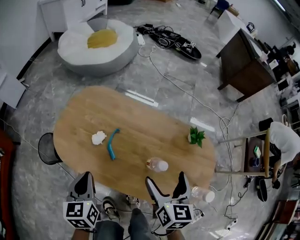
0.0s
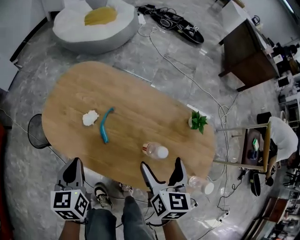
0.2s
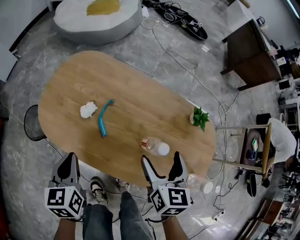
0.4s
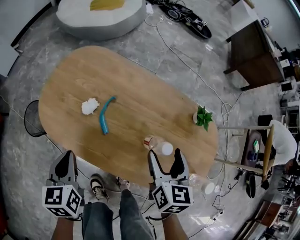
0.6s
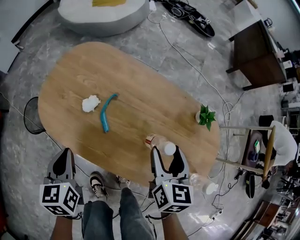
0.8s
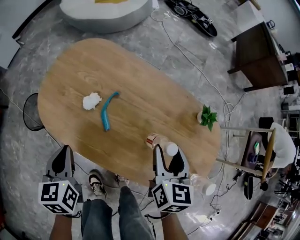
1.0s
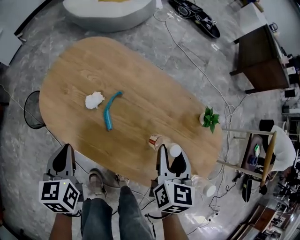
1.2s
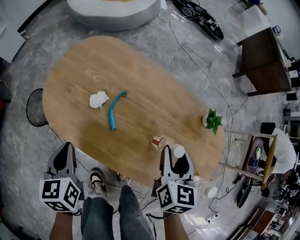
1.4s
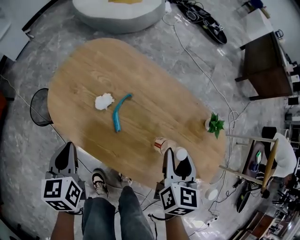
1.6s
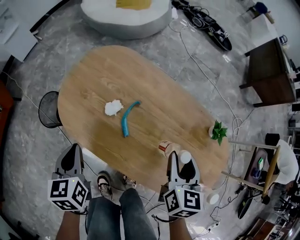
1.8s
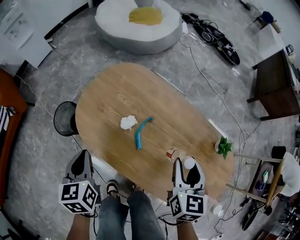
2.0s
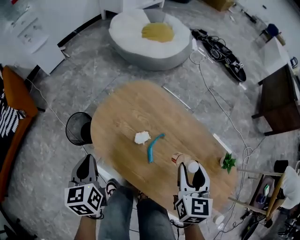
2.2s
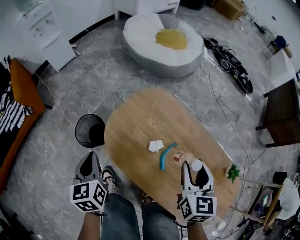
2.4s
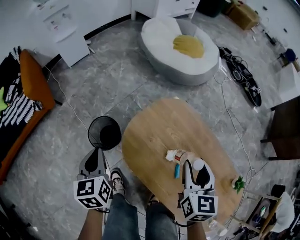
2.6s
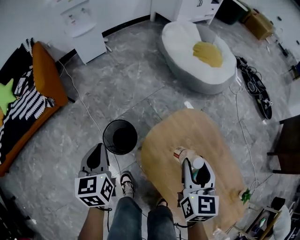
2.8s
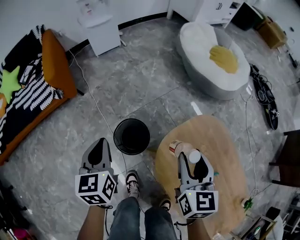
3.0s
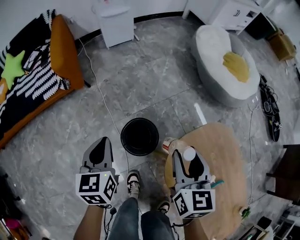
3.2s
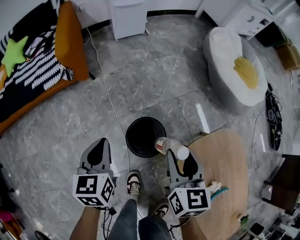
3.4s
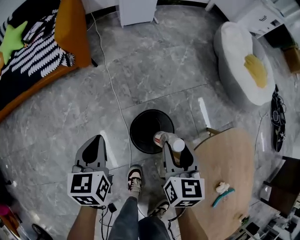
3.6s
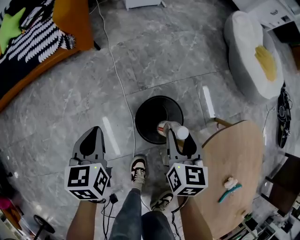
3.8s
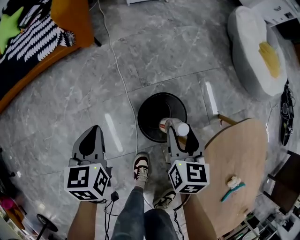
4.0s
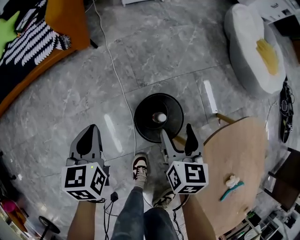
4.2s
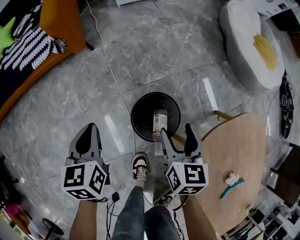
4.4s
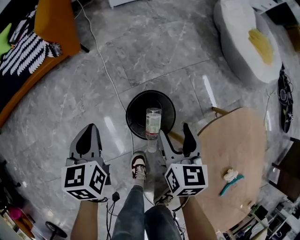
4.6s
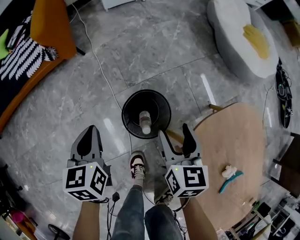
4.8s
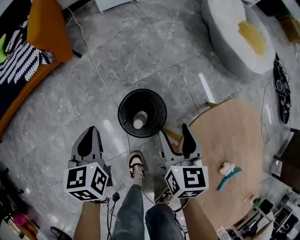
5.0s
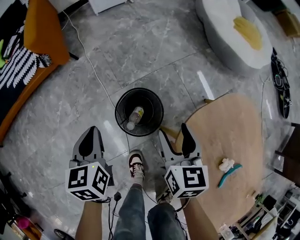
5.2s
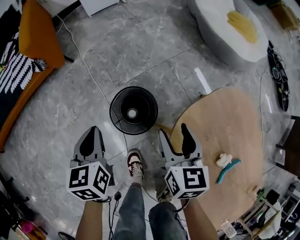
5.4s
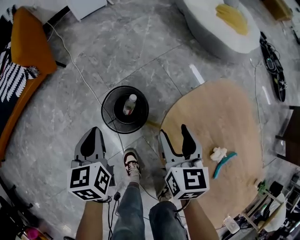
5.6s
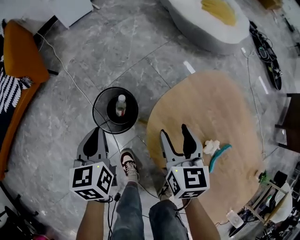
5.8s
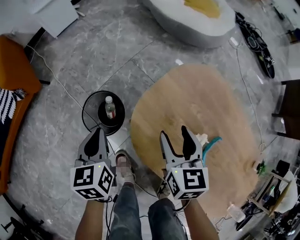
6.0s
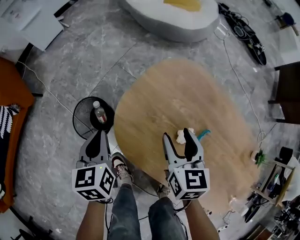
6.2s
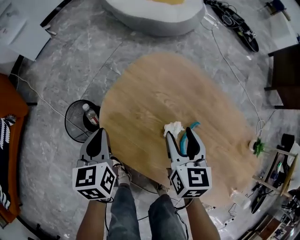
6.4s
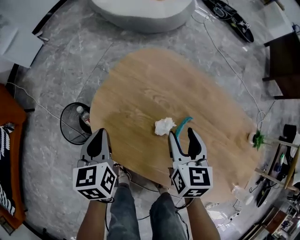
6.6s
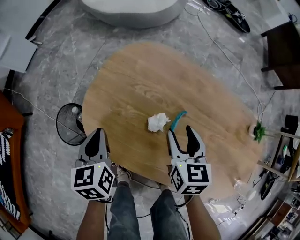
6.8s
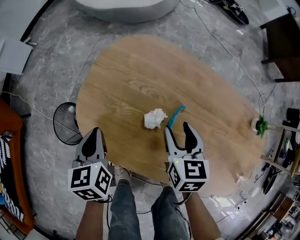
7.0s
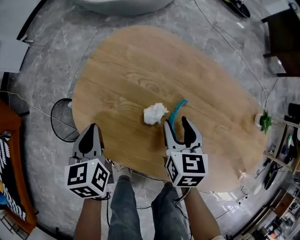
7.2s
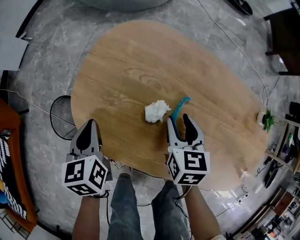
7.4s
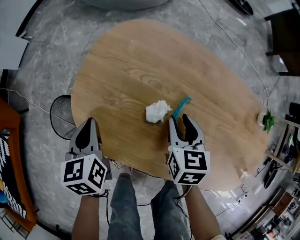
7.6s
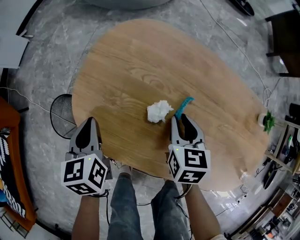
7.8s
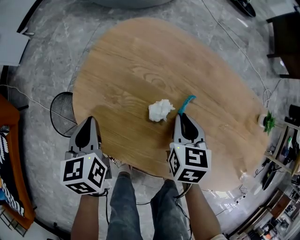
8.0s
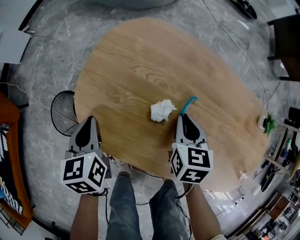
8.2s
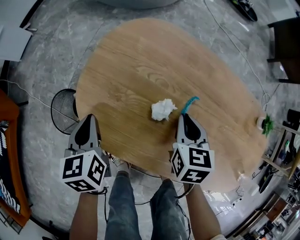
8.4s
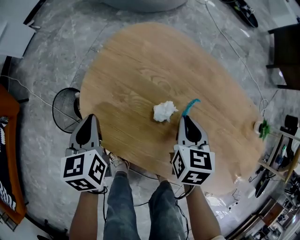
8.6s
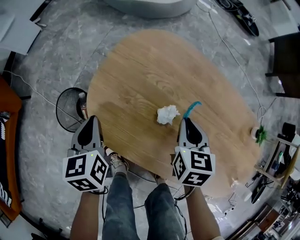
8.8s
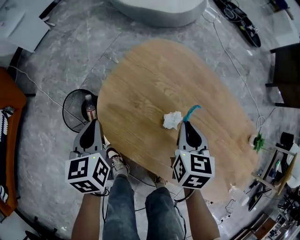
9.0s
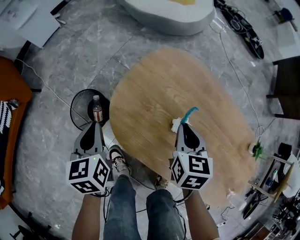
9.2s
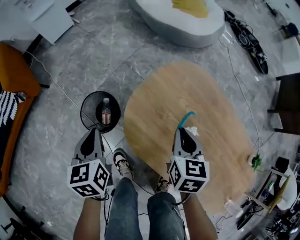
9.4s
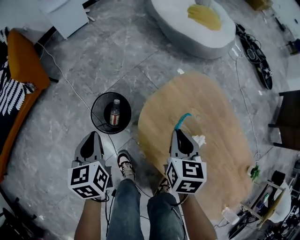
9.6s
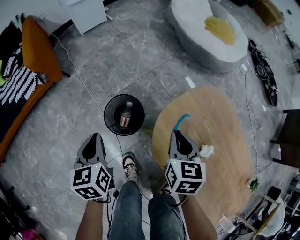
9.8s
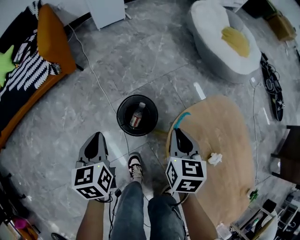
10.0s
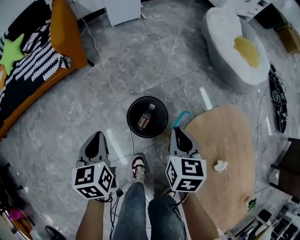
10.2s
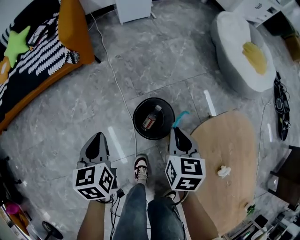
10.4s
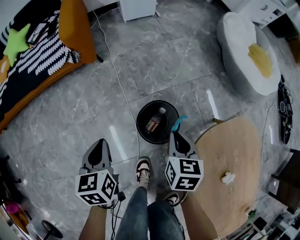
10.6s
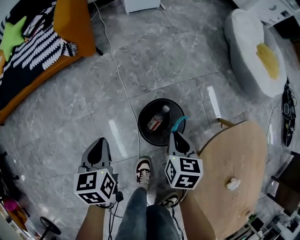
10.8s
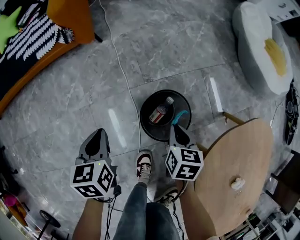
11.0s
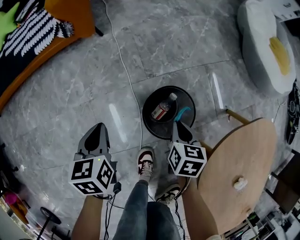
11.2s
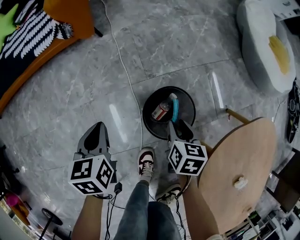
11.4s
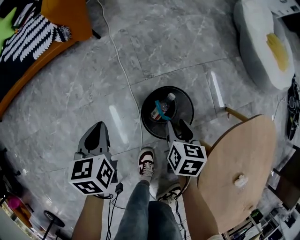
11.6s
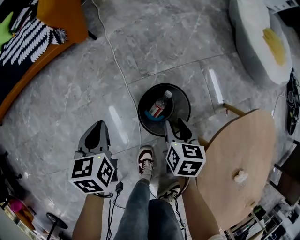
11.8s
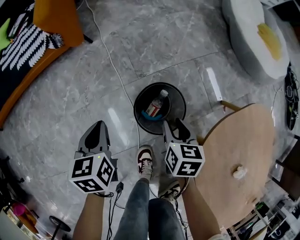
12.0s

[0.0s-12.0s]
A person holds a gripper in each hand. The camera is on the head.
0.0s to 1.6s: The left gripper moves downward and to the left, about 10 cm. Meanwhile the right gripper shifts some 5 cm downward, and closes up.
1.6s to 3.0s: The left gripper moves roughly 40 cm, and rotates roughly 30 degrees, while the right gripper moves some 50 cm, and changes its angle by roughly 40 degrees.
3.0s to 4.4s: Both grippers move downward and to the left, some 25 cm.
4.4s to 6.0s: The right gripper moves to the right and backward, approximately 25 cm, and changes its angle by some 20 degrees. The left gripper moves to the right, approximately 25 cm, and swivels roughly 20 degrees.
6.0s to 7.6s: The grippers both shift to the right by approximately 20 cm. The right gripper swivels approximately 30 degrees.
7.6s to 9.0s: The left gripper is displaced to the left by some 5 cm, while the right gripper goes some 5 cm upward.
9.0s to 10.4s: The right gripper changes place by roughly 40 cm, and swivels about 40 degrees. The left gripper ends up some 35 cm from where it was, and rotates some 40 degrees.
10.4s to 12.0s: Both grippers move downward, approximately 15 cm.

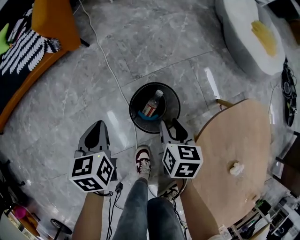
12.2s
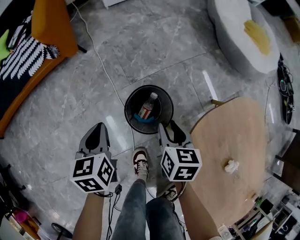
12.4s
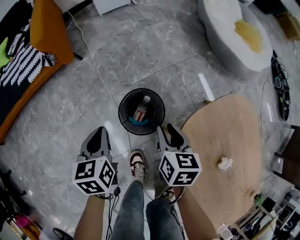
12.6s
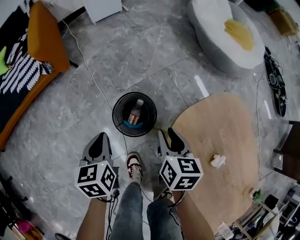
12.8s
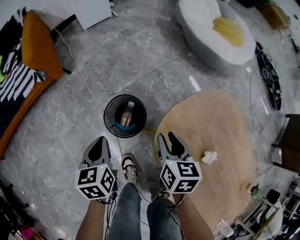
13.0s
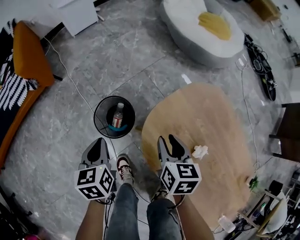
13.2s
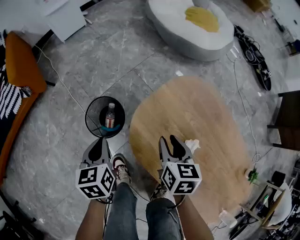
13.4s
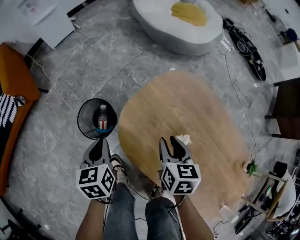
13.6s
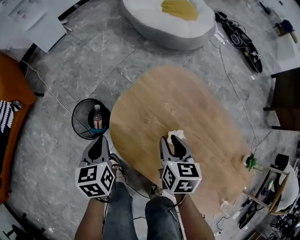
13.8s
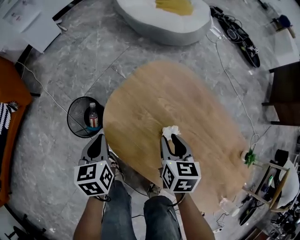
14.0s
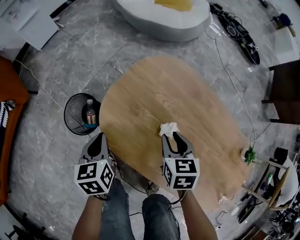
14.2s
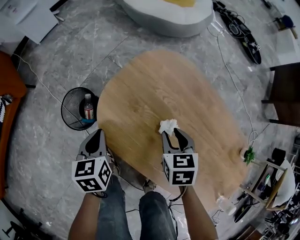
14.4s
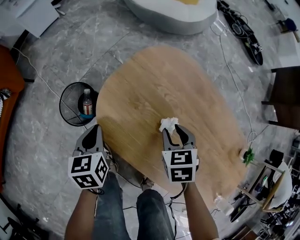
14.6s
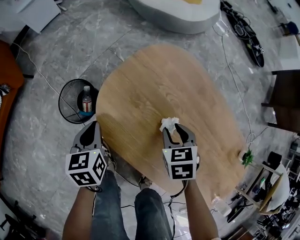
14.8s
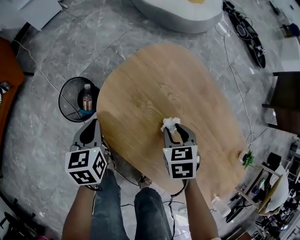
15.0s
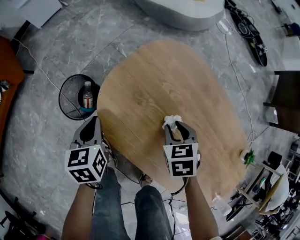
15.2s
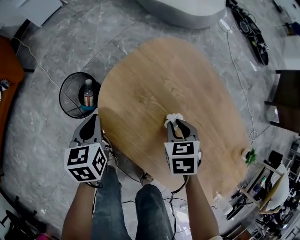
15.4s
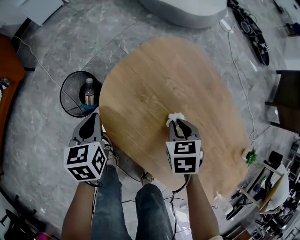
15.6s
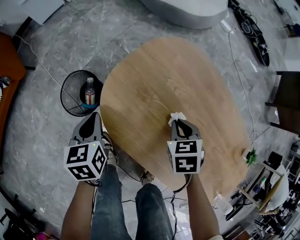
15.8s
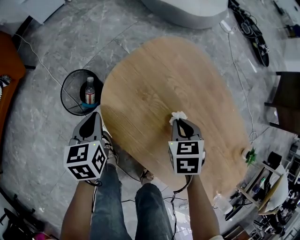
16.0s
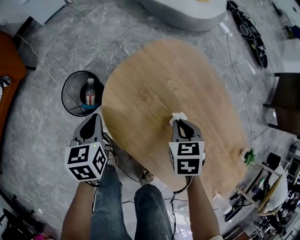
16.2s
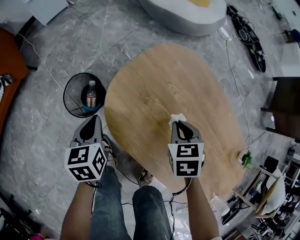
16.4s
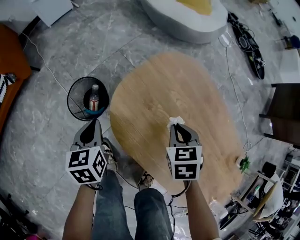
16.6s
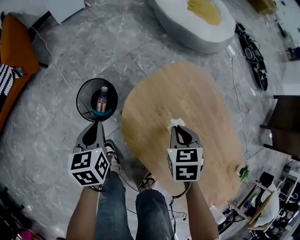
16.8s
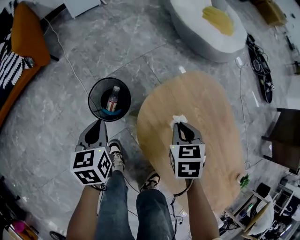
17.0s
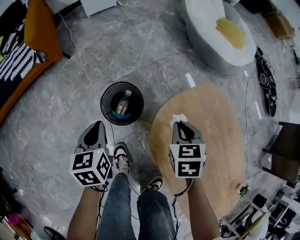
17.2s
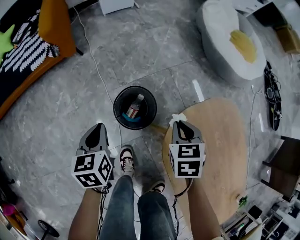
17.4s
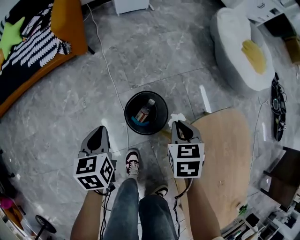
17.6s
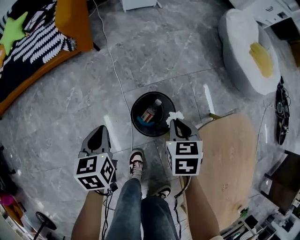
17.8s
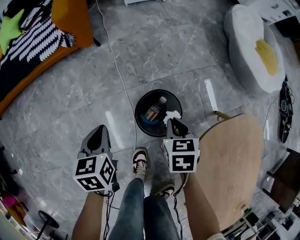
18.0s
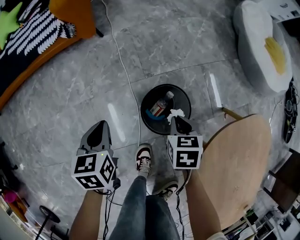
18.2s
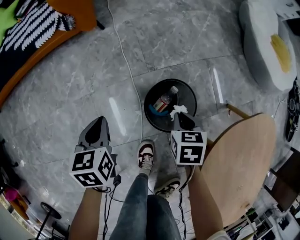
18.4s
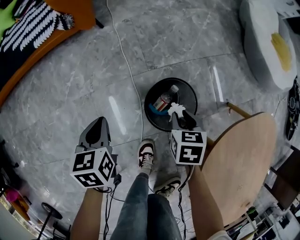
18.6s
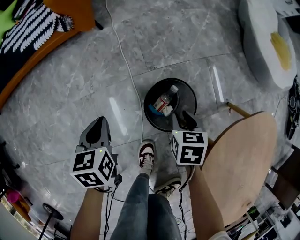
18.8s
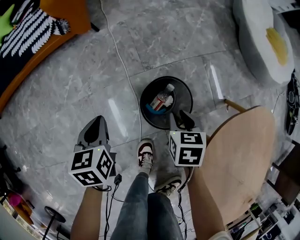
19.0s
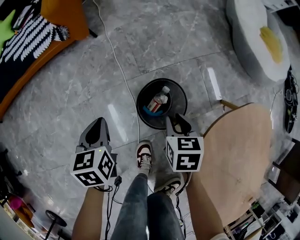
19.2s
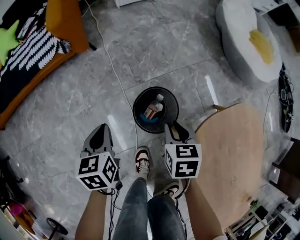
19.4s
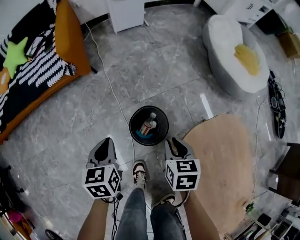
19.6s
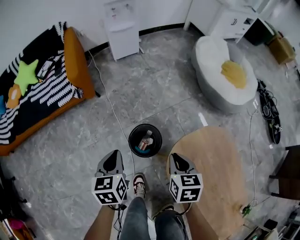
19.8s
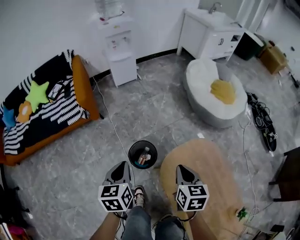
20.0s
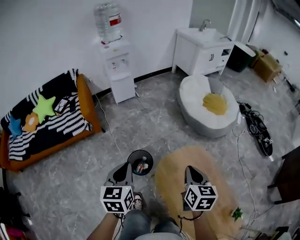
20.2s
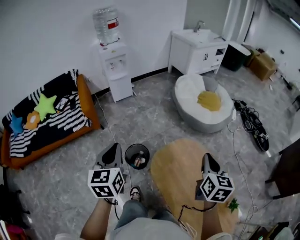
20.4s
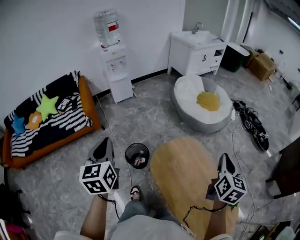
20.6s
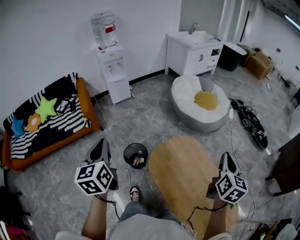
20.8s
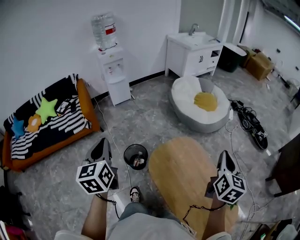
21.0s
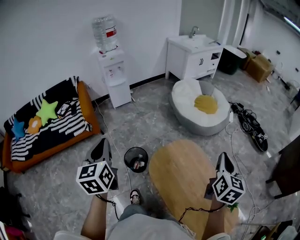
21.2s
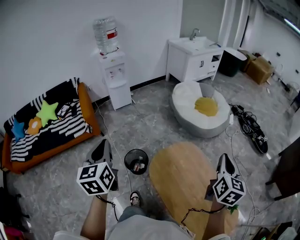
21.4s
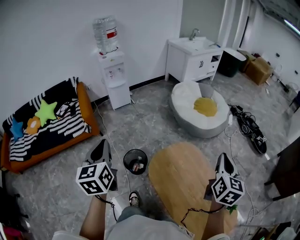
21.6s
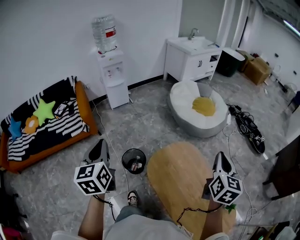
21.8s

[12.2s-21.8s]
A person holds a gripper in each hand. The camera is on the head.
12.2s to 13.8s: The left gripper shifts by about 30 cm, and turns by approximately 20 degrees. Meanwhile the right gripper shifts by about 35 cm, and rotates some 30 degrees.
13.8s to 15.4s: The left gripper shifts by roughly 5 cm. Meanwhile the right gripper is displaced downward by about 10 cm, and rotates approximately 30 degrees.
15.4s to 17.0s: The right gripper travels to the left, upward and forward by some 15 cm. The left gripper is displaced to the left by roughly 10 cm.
17.0s to 18.6s: The left gripper travels to the left and downward by roughly 25 cm. The right gripper travels to the left, downward and forward by some 35 cm.
18.6s to 20.2s: The left gripper is displaced upward and to the right by about 50 cm, and changes its angle by roughly 30 degrees. The right gripper heads upward, covering approximately 50 cm, and tilts its fingers approximately 30 degrees upward.
20.2s to 21.8s: The right gripper goes roughly 25 cm to the right, upward and backward, and rotates some 30 degrees, while the left gripper shifts about 15 cm upward.

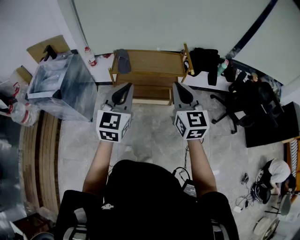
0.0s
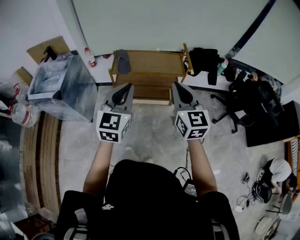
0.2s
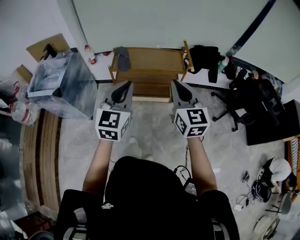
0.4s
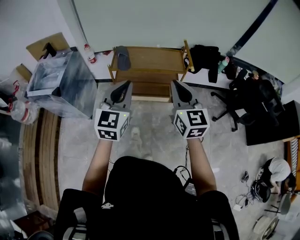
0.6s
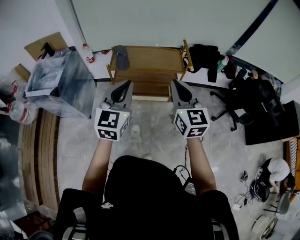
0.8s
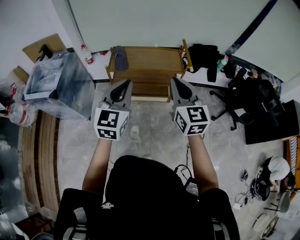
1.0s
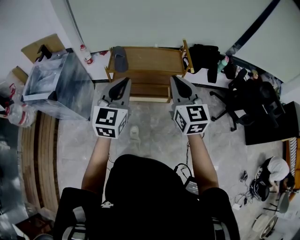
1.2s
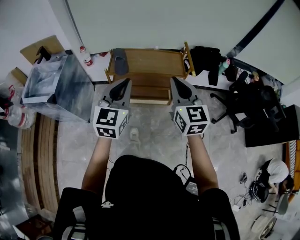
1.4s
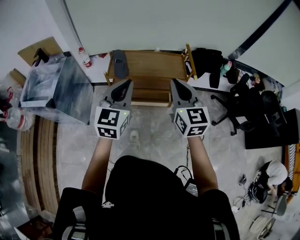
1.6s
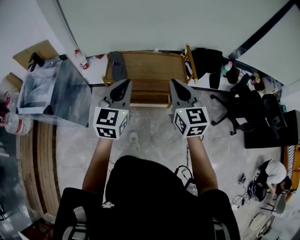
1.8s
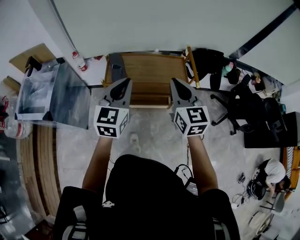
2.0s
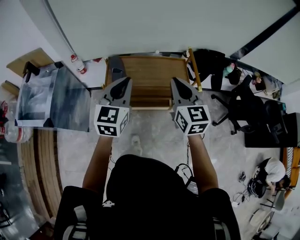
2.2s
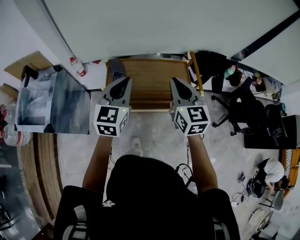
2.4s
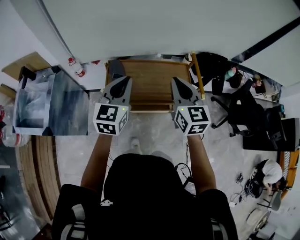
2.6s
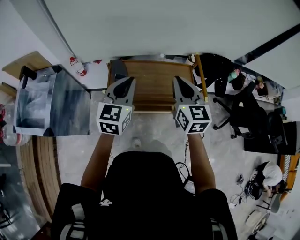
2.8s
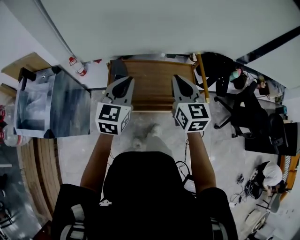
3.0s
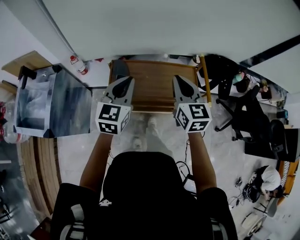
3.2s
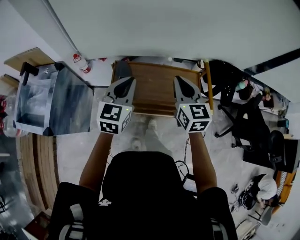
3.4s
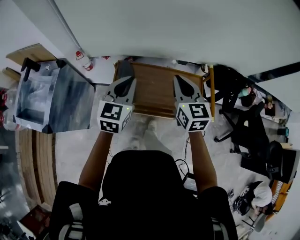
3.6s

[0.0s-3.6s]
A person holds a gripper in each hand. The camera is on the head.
0.0s to 1.8s: The two grippers go about 15 cm forward.
1.8s to 3.6s: Both grippers travel together forward, approximately 30 cm.
